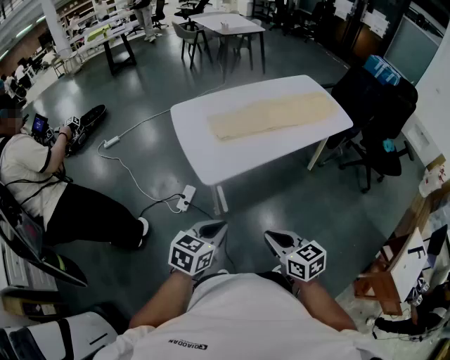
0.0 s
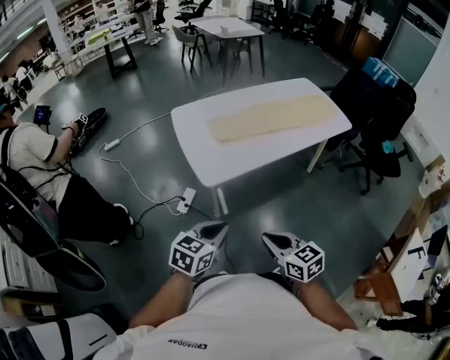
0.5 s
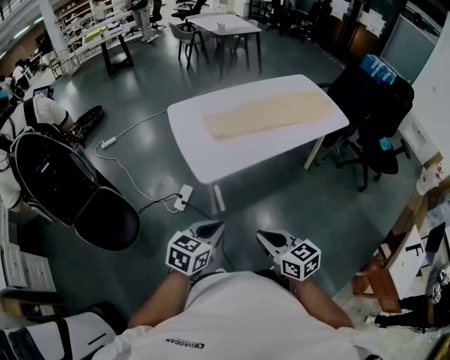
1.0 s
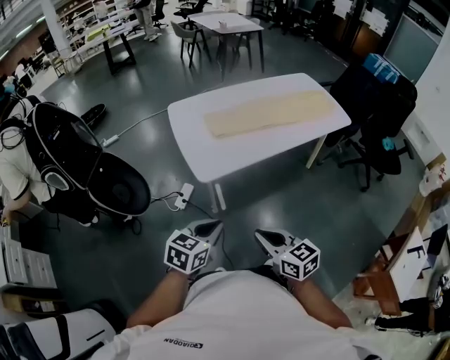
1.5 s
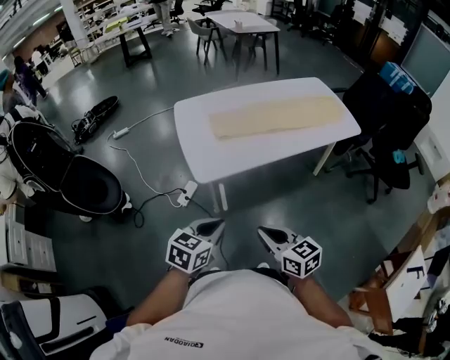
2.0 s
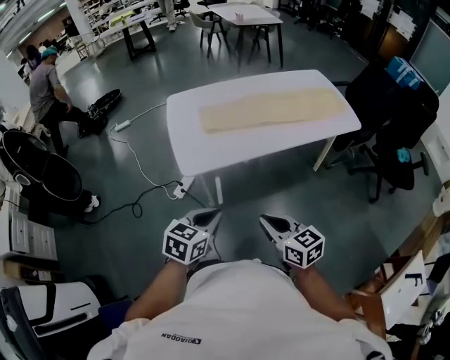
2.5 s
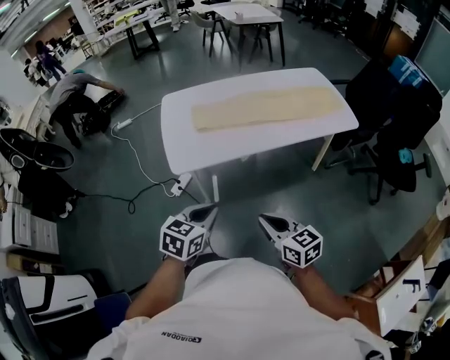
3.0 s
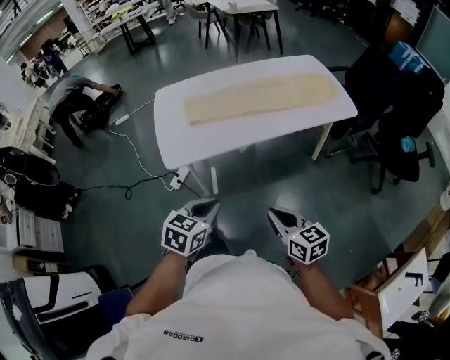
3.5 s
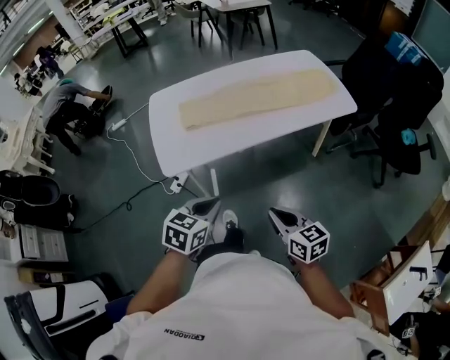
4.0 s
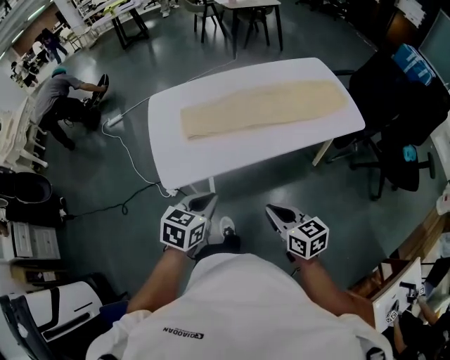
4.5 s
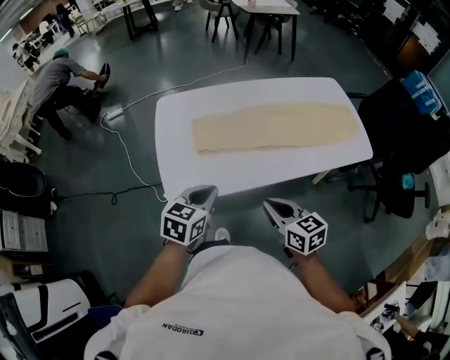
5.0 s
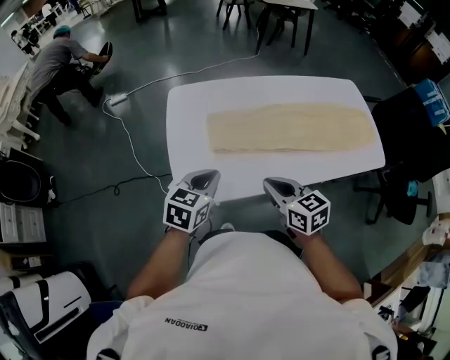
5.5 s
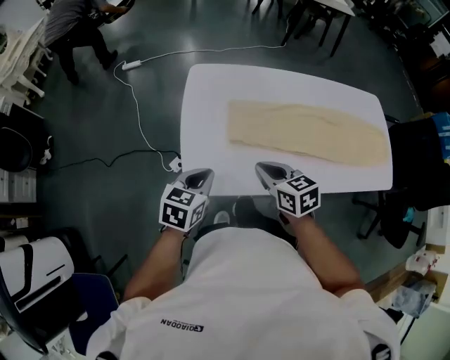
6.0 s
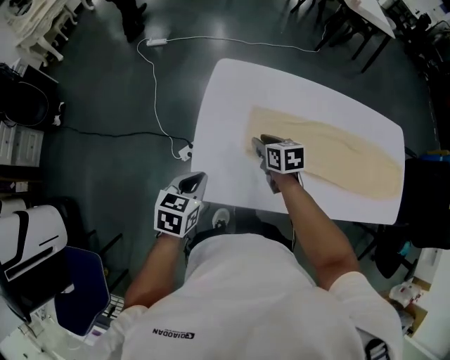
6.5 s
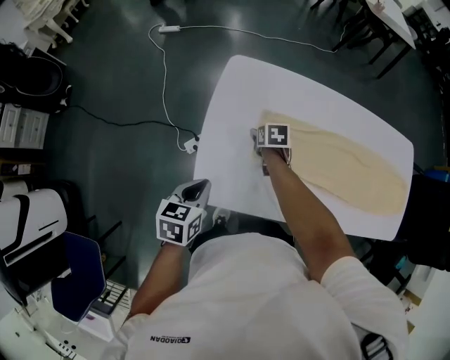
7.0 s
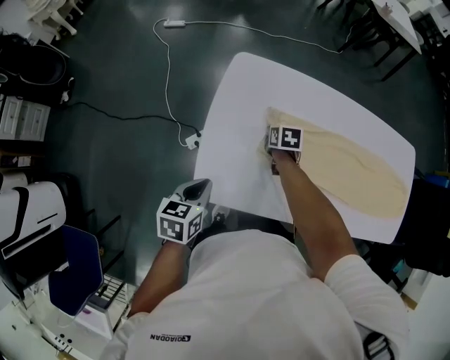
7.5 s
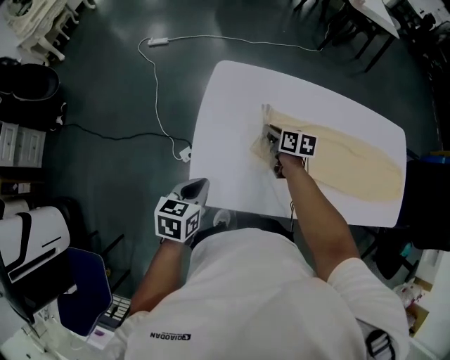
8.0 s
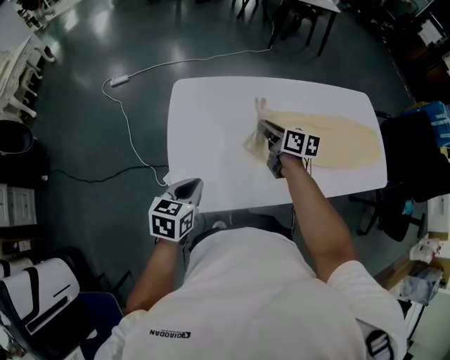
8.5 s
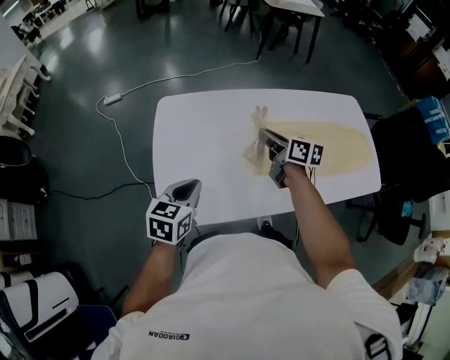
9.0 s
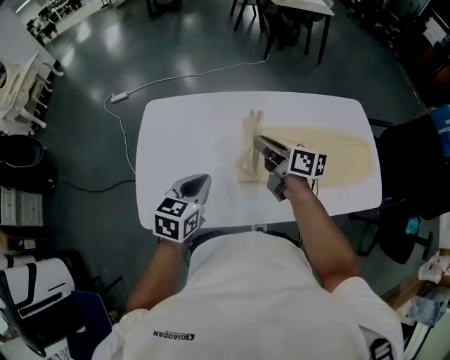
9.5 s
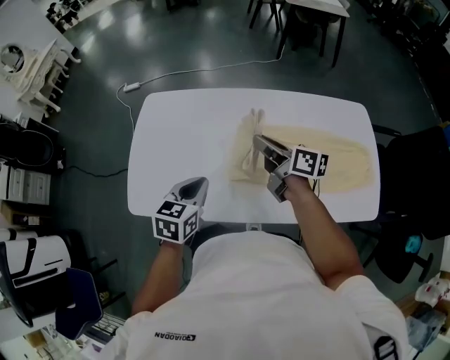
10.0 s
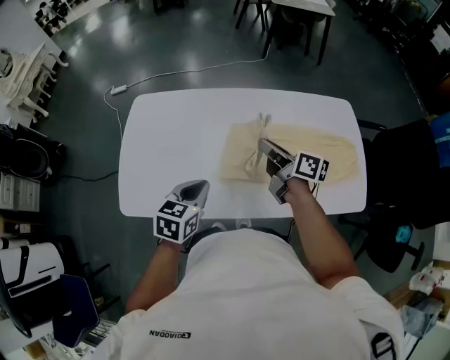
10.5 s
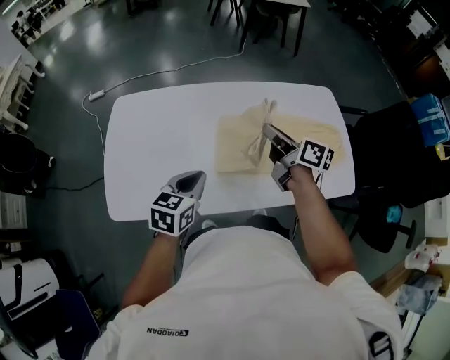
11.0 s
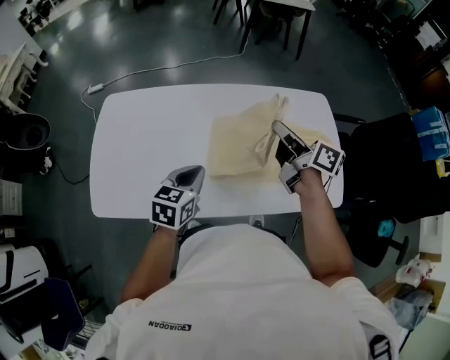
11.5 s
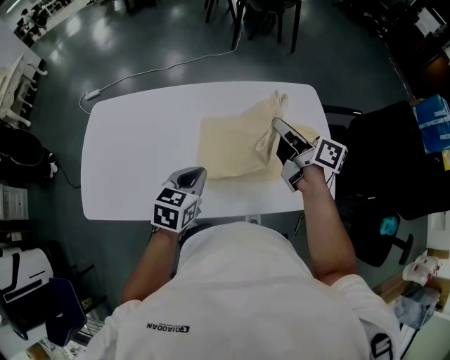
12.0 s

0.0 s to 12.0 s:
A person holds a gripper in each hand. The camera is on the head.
0.0 to 2.0 s: Both grippers move to the right, approximately 5 cm.
2.0 to 4.0 s: The grippers both shift to the right by some 20 cm.
4.0 to 6.0 s: Both grippers travel together forward and to the left, approximately 40 cm. The right gripper swivels some 30 degrees. Meanwhile the left gripper rotates about 20 degrees.
6.0 to 8.0 s: The right gripper heads forward and downward, covering roughly 25 cm, changes its angle by about 20 degrees, and opens and closes again. The left gripper heads to the left, covering approximately 5 cm.
8.0 to 10.0 s: The right gripper moves to the right and upward, approximately 40 cm, and tilts its fingers approximately 30 degrees upward, while the left gripper moves to the right, roughly 35 cm.
10.0 to 12.0 s: Both grippers move to the right, roughly 25 cm.

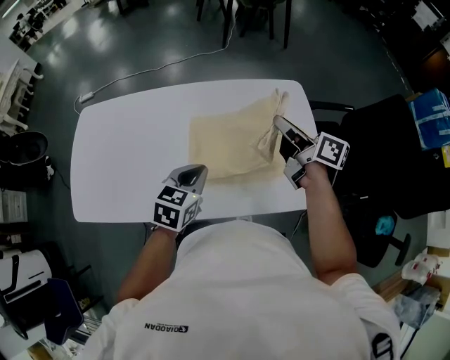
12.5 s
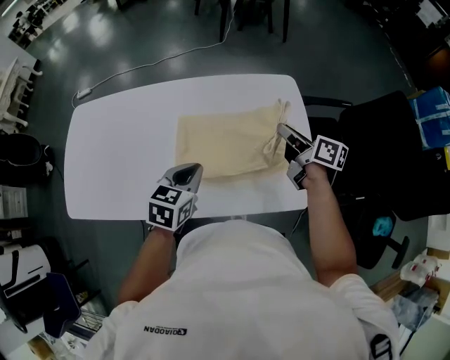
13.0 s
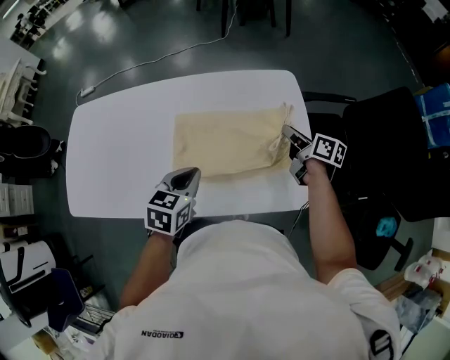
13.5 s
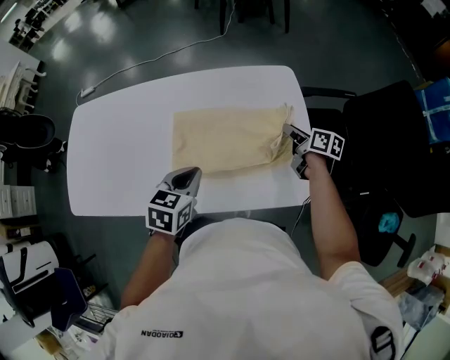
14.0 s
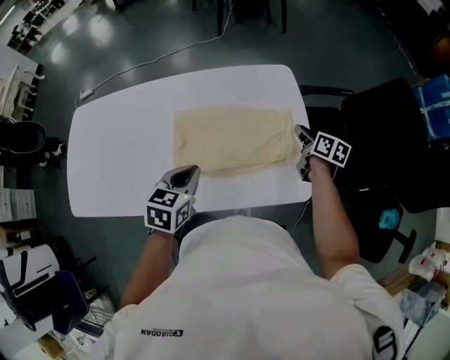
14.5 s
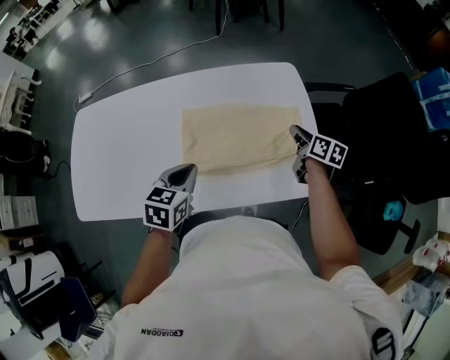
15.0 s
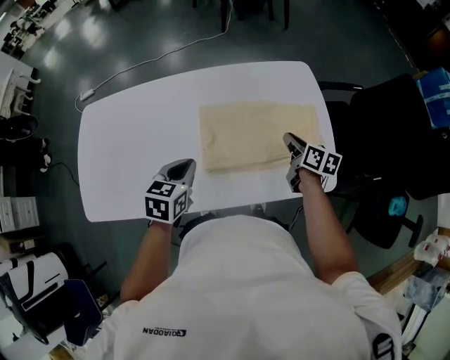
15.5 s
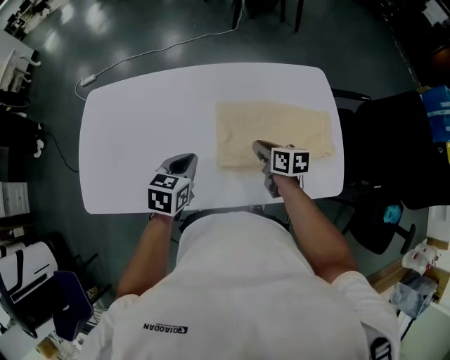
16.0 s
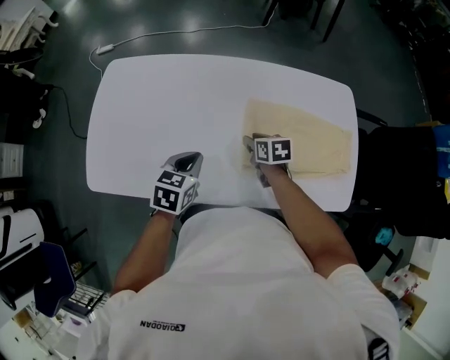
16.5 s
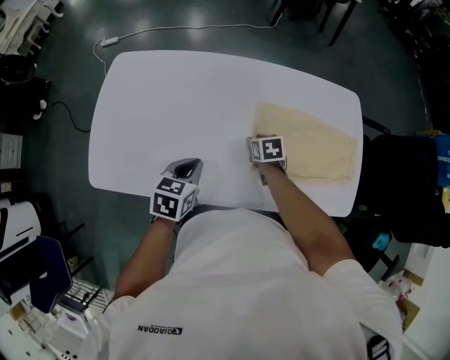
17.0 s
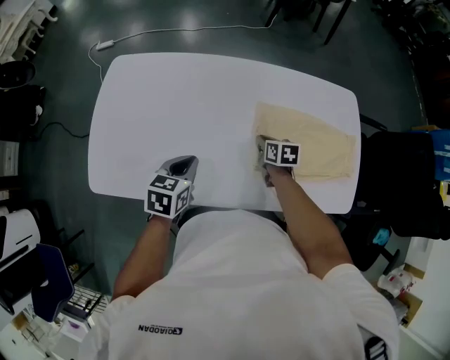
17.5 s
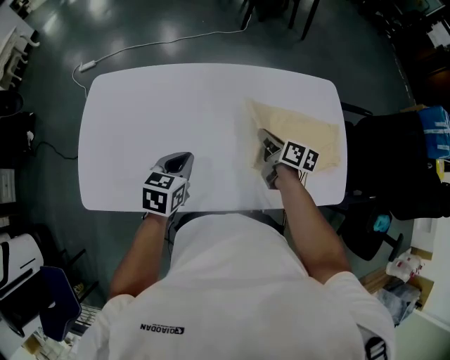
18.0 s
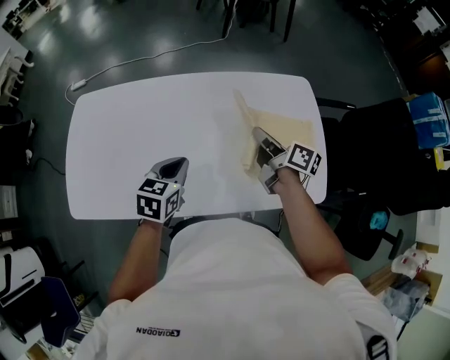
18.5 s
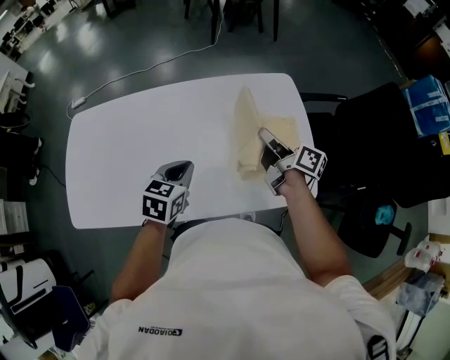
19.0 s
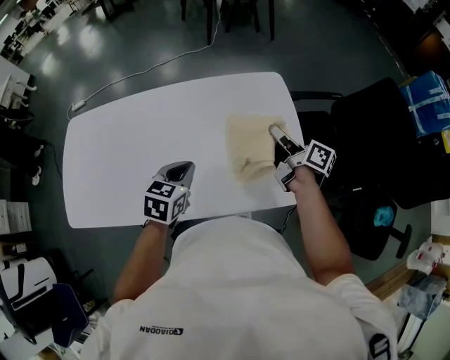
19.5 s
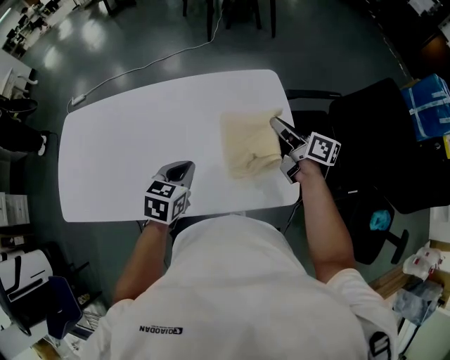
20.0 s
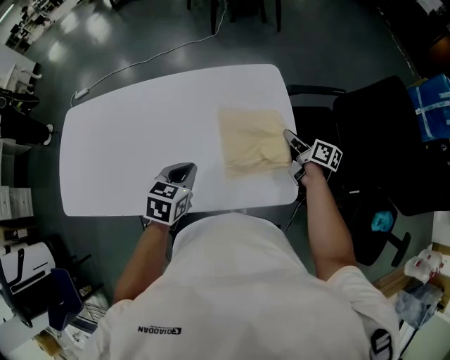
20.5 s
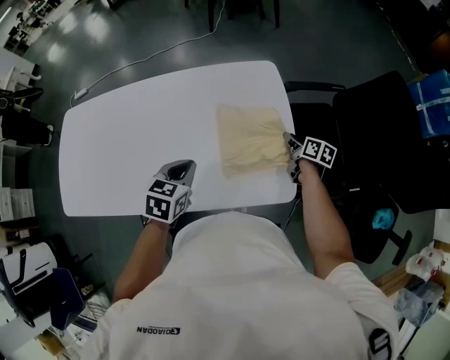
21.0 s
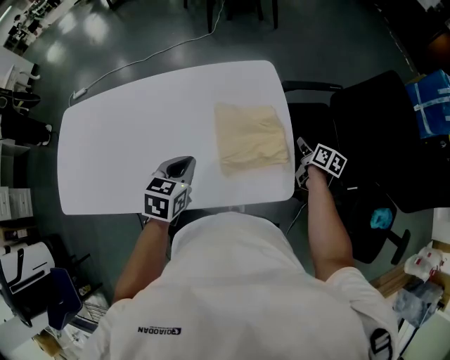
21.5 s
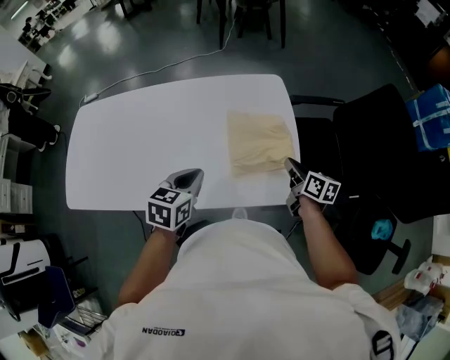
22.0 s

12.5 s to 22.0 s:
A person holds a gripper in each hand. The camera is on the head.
12.5 to 14.5 s: The left gripper heads to the right, covering roughly 10 cm, while the right gripper goes approximately 30 cm to the right and downward, and swivels some 30 degrees.
14.5 to 16.5 s: The left gripper travels to the left by approximately 25 cm; the right gripper travels to the left by about 40 cm, and changes its angle by about 40 degrees.
16.5 to 18.0 s: The right gripper is displaced upward and to the right by roughly 10 cm, turns by about 40 degrees, and closes up.
18.0 to 20.0 s: Both grippers move to the right, about 35 cm. The right gripper rotates about 20 degrees.
20.0 to 22.0 s: The right gripper moves backward, downward and to the right, roughly 15 cm, and changes its angle by about 20 degrees; the left gripper goes roughly 5 cm backward.

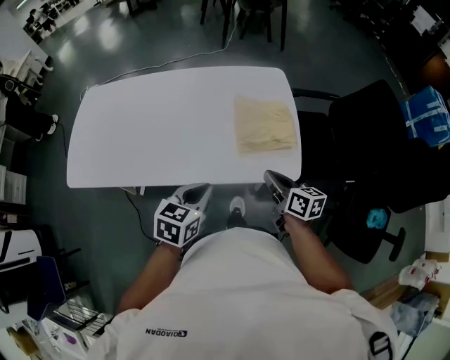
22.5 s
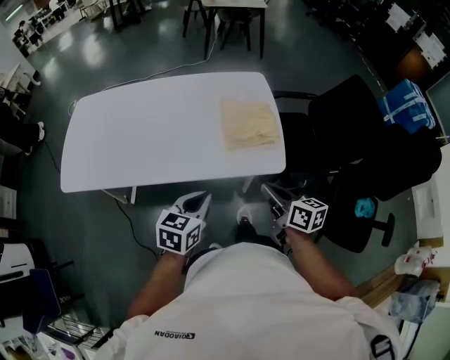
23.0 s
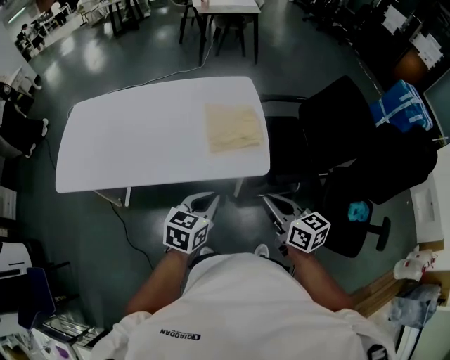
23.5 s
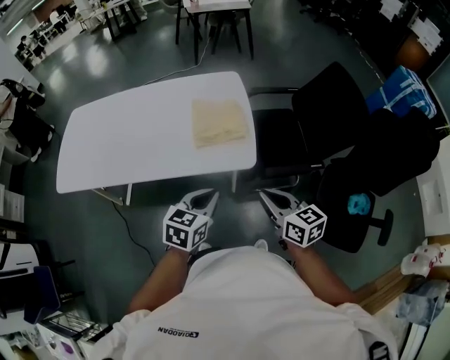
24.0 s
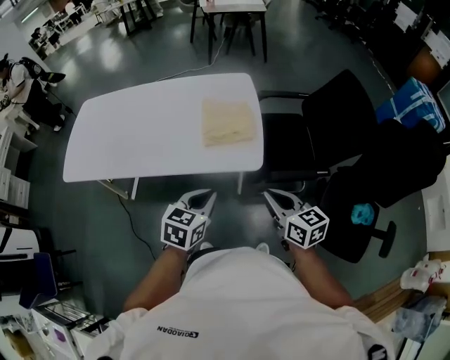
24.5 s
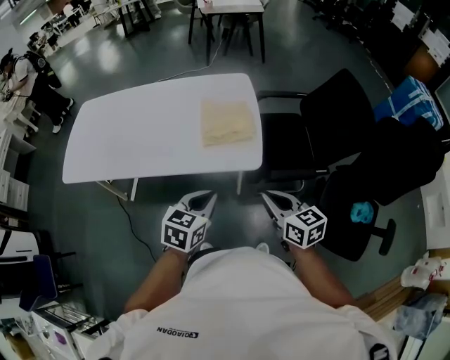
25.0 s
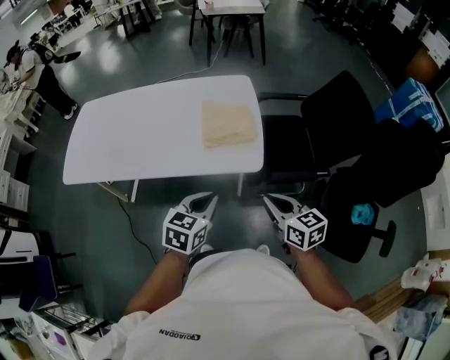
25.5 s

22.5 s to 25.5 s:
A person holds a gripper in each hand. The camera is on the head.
22.5 to 24.0 s: The right gripper is displaced backward, to the right and upward by approximately 25 cm, while the left gripper is displaced to the right and backward by some 20 cm.
24.0 to 25.5 s: There are only small adjustments of the grippers.

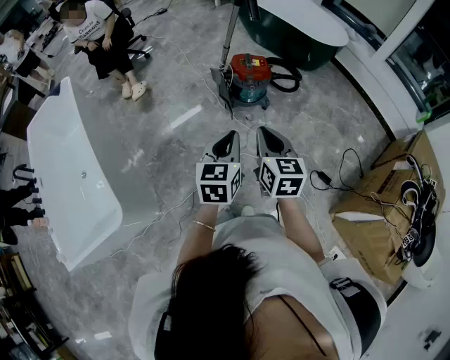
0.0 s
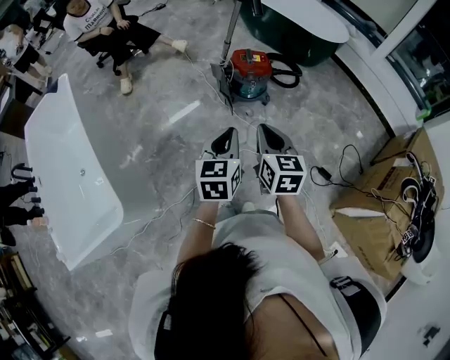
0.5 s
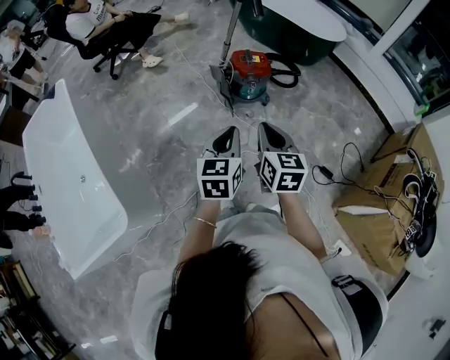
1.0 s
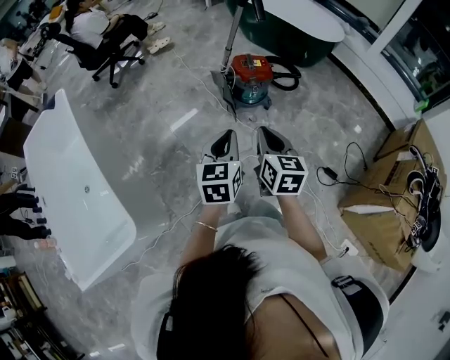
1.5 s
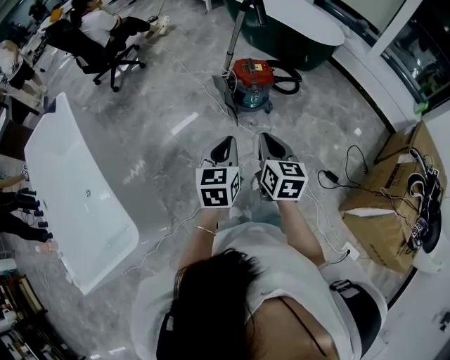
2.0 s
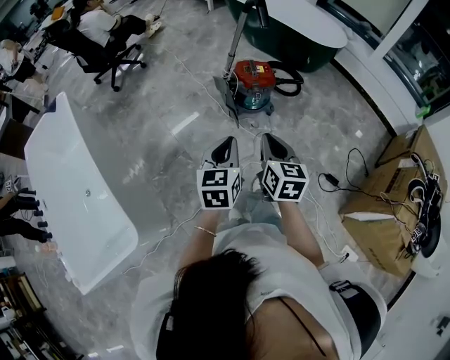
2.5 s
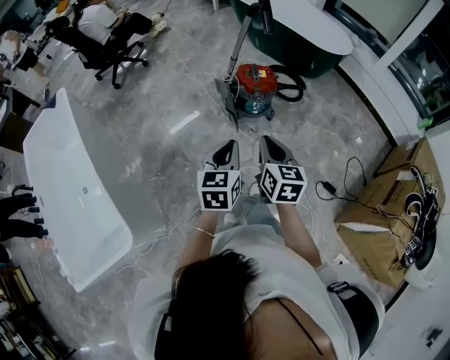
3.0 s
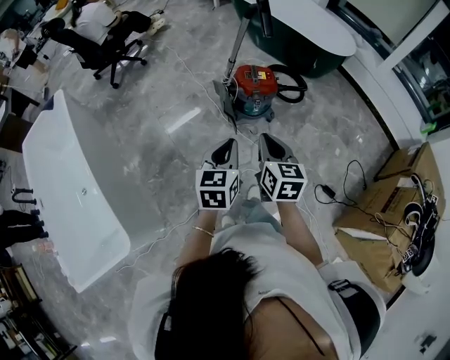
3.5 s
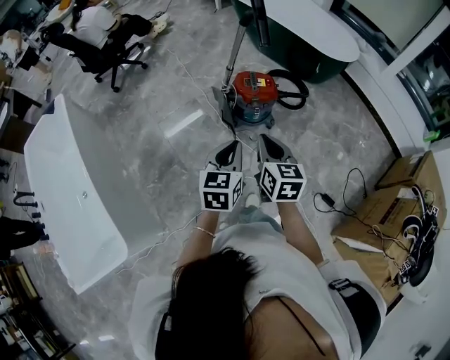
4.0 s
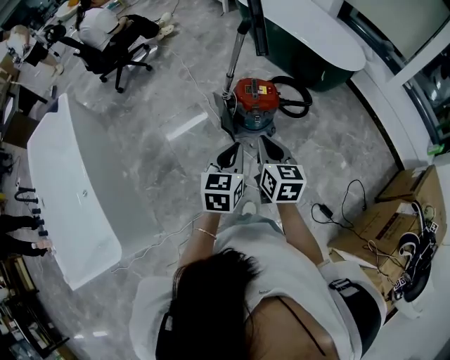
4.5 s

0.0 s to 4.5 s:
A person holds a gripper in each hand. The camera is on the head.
0.0 to 2.0 s: The grippers both shift to the left by approximately 10 cm.
2.0 to 4.5 s: The right gripper travels forward by about 20 cm, while the left gripper goes approximately 20 cm forward and to the right.
